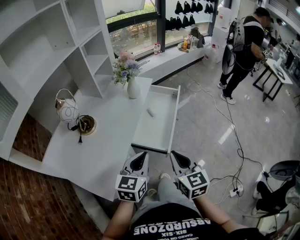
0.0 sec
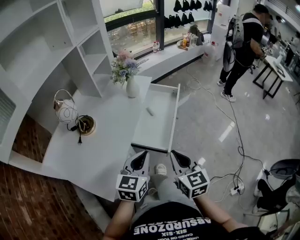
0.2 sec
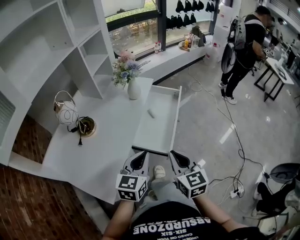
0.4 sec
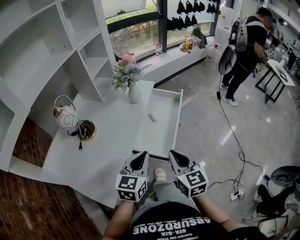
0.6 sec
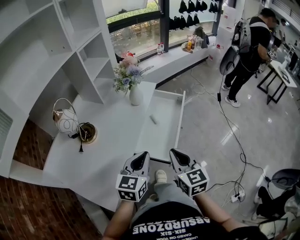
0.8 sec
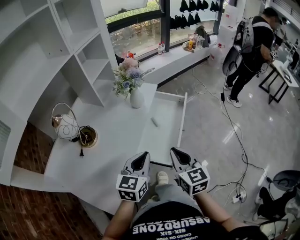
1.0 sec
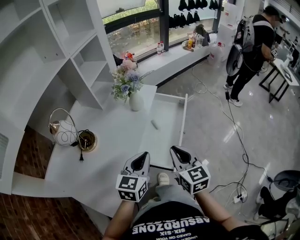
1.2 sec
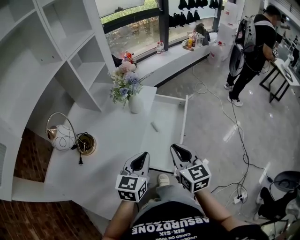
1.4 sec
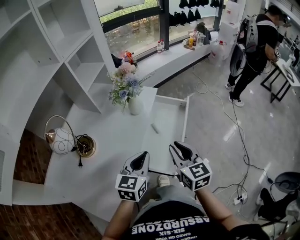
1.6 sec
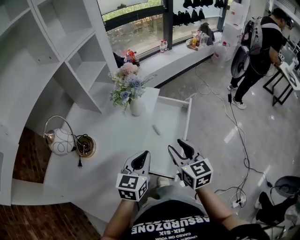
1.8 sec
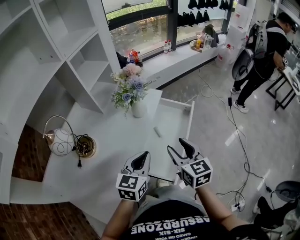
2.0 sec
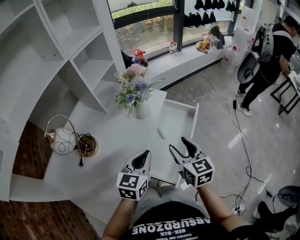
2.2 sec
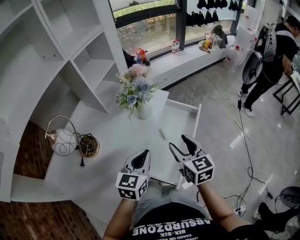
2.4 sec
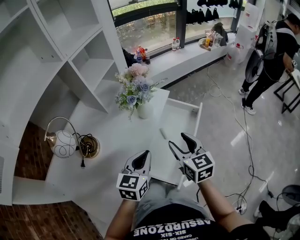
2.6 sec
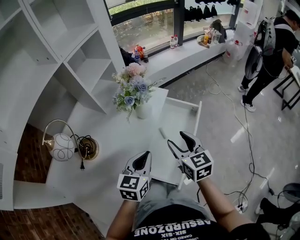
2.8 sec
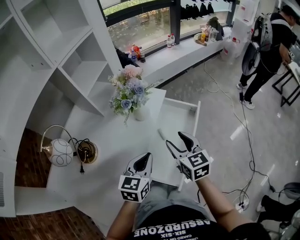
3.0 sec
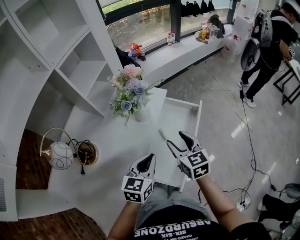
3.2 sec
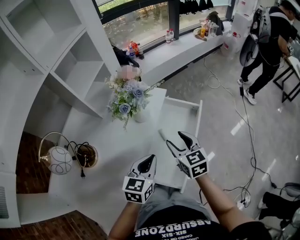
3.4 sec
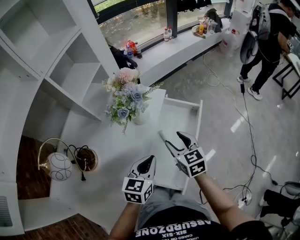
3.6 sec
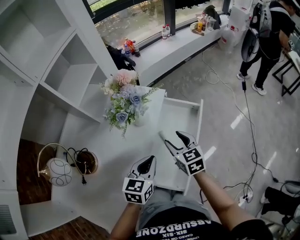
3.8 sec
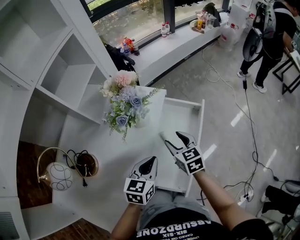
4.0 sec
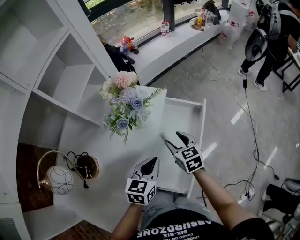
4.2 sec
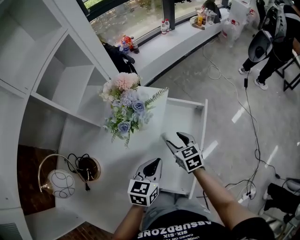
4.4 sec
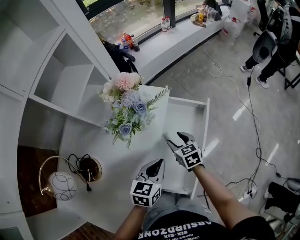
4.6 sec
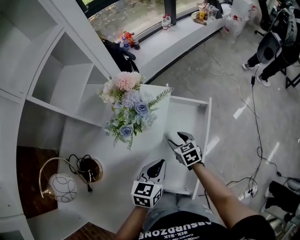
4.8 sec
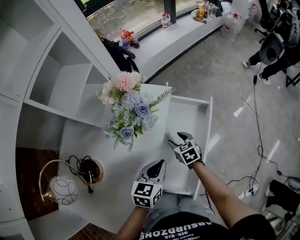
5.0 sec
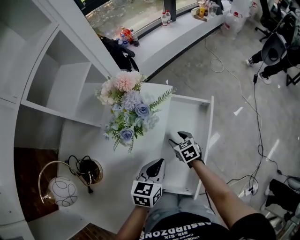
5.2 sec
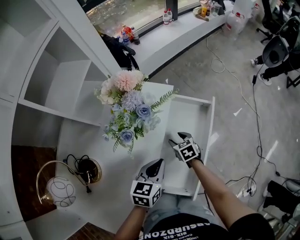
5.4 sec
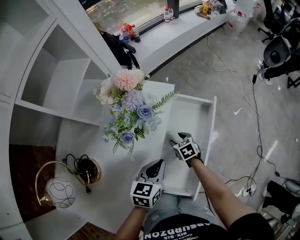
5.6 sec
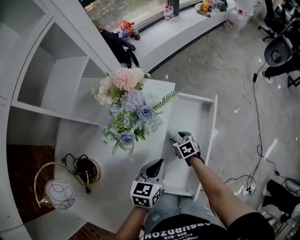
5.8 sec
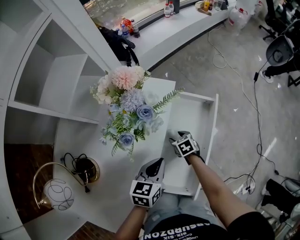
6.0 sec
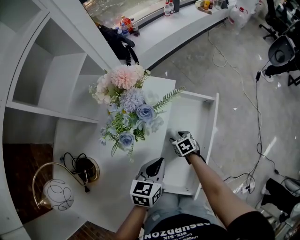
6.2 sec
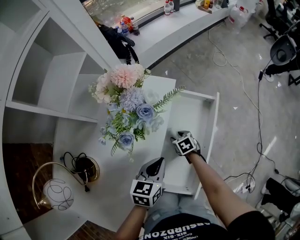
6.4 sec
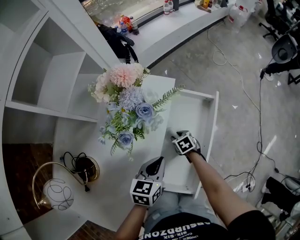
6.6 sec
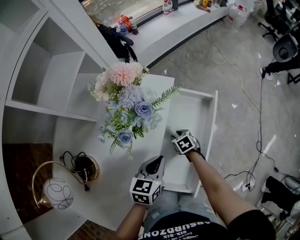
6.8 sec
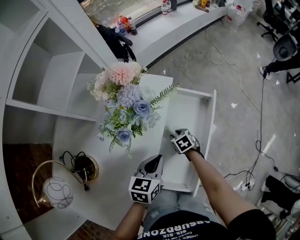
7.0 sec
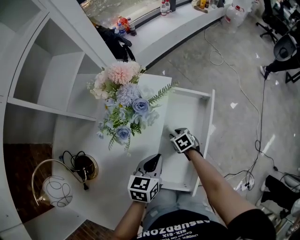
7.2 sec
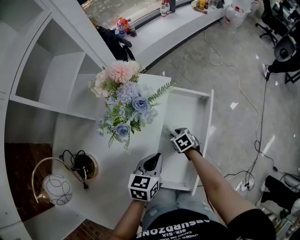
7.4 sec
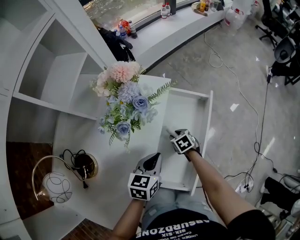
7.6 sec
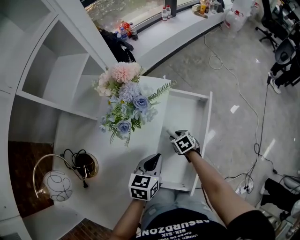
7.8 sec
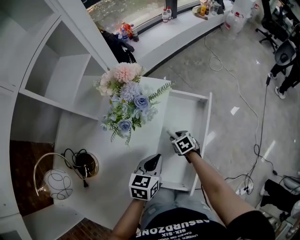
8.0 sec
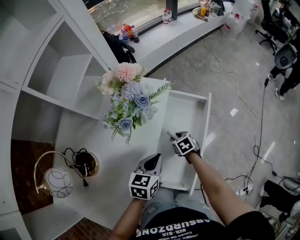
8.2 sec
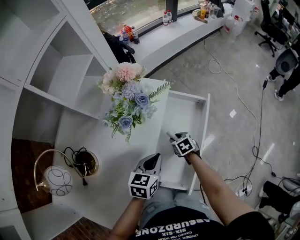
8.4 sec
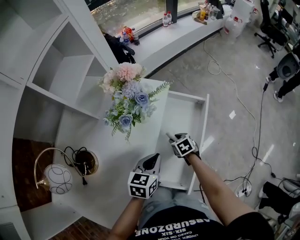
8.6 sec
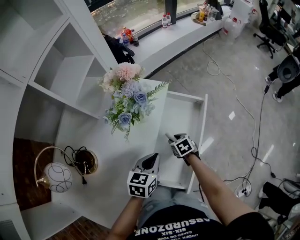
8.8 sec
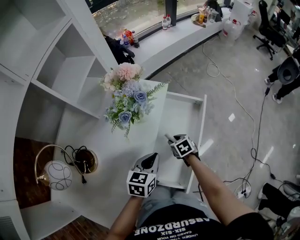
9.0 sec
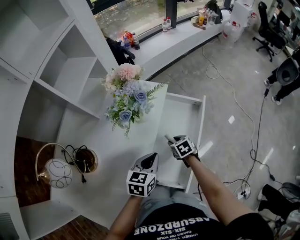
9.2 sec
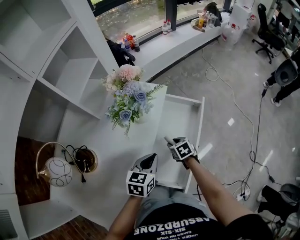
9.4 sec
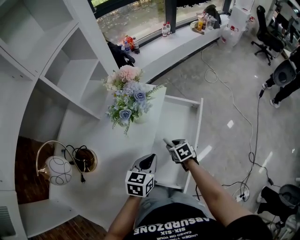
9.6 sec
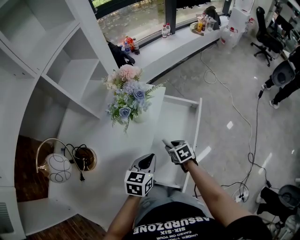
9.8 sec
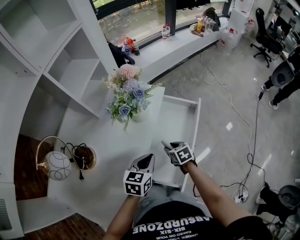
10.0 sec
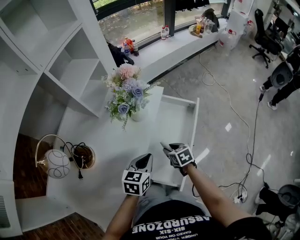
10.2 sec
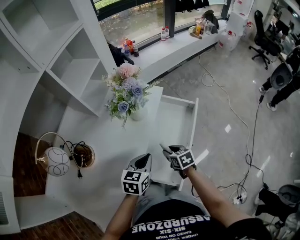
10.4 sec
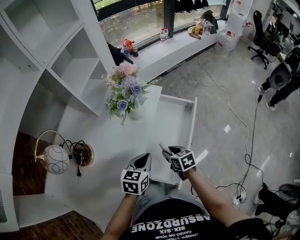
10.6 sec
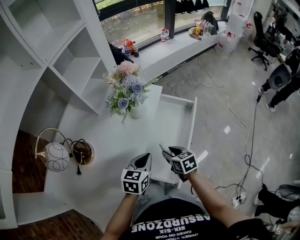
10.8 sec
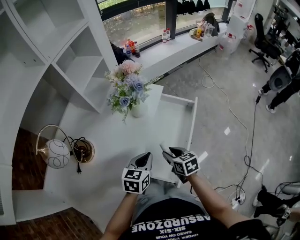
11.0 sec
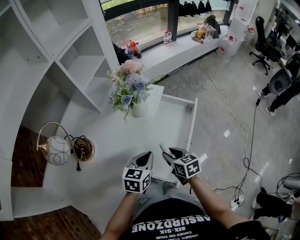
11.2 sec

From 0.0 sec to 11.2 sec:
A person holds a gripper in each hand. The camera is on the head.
From 0.0 sec to 1.6 sec: Both grippers travel together forward, some 20 cm.
From 1.6 sec to 3.2 sec: The right gripper heads forward and downward, covering approximately 15 cm, and opens, while the left gripper travels forward by about 10 cm.
From 3.2 sec to 4.8 sec: The right gripper moves downward and forward, some 25 cm, and changes its angle by about 20 degrees. The left gripper moves downward and forward, some 10 cm.
From 4.8 sec to 6.4 sec: The left gripper changes place by some 5 cm. The right gripper is displaced downward by roughly 15 cm, and changes its angle by about 20 degrees.
From 6.4 sec to 8.0 sec: The right gripper ends up some 5 cm from where it was.
From 8.0 sec to 9.6 sec: The right gripper heads upward and backward, covering some 10 cm.
From 9.6 sec to 11.2 sec: The left gripper goes about 5 cm backward. The right gripper moves upward and backward, about 15 cm.

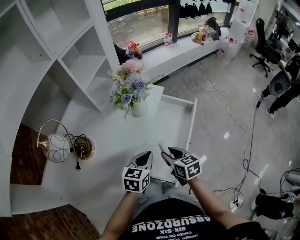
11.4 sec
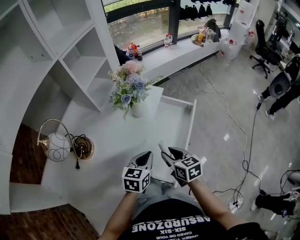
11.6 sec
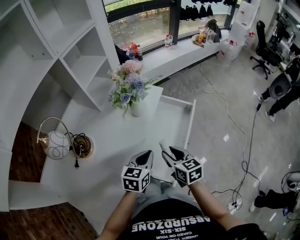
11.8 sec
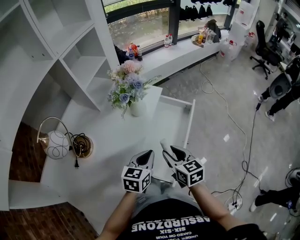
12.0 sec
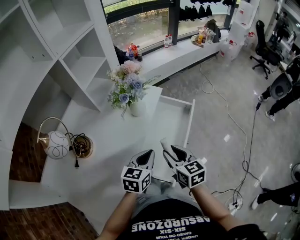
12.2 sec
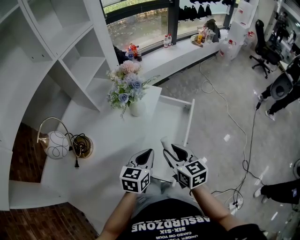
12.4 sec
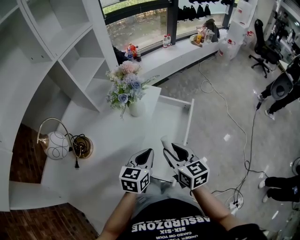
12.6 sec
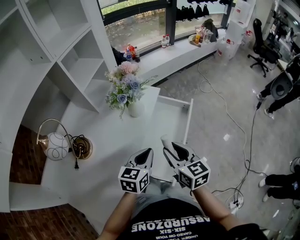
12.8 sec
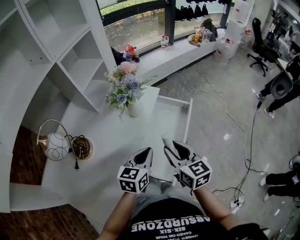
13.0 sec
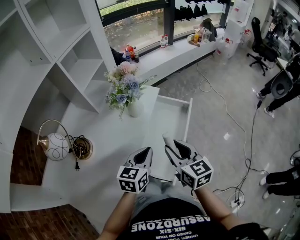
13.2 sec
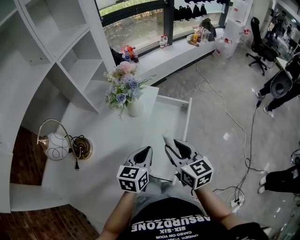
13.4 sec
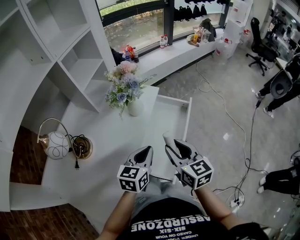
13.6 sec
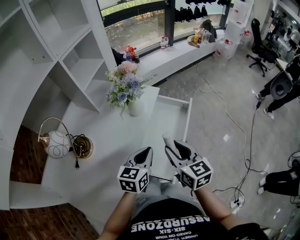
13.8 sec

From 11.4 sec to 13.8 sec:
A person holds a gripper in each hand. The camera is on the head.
From 11.4 sec to 12.6 sec: The right gripper shifts about 10 cm upward.
From 12.6 sec to 13.8 sec: The grippers stay close to where they were, moving slightly.

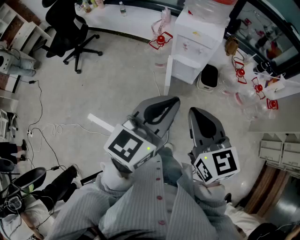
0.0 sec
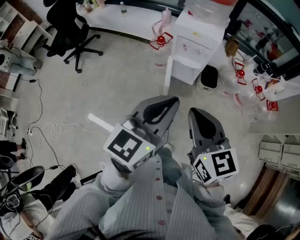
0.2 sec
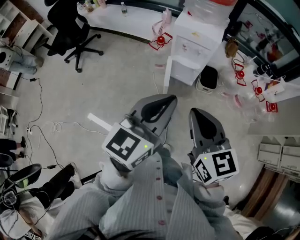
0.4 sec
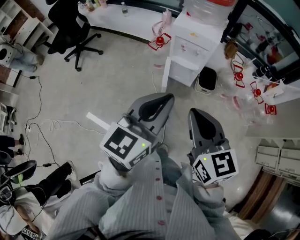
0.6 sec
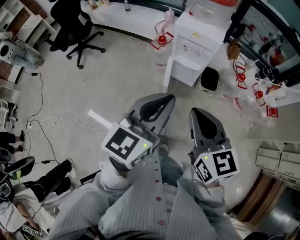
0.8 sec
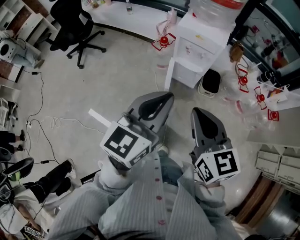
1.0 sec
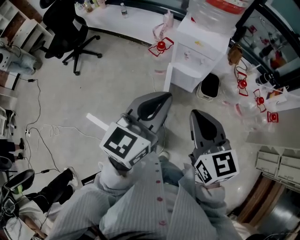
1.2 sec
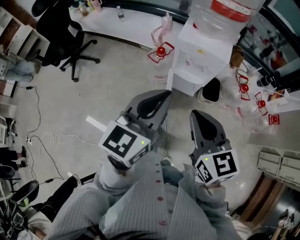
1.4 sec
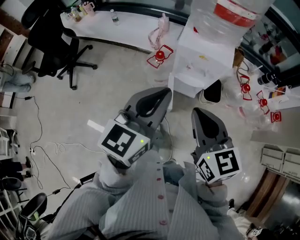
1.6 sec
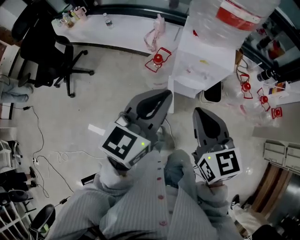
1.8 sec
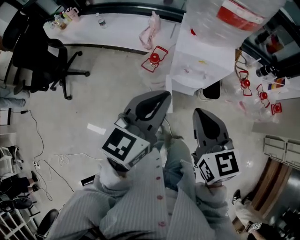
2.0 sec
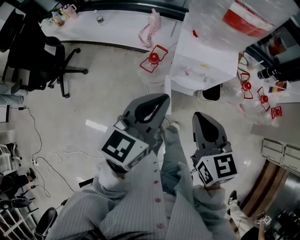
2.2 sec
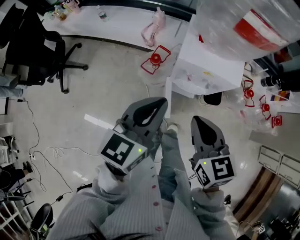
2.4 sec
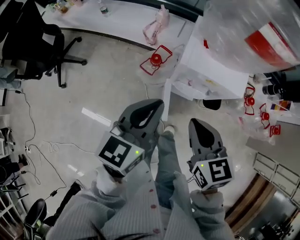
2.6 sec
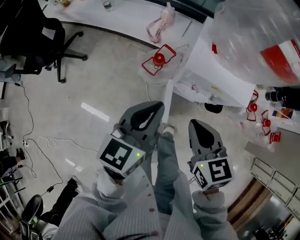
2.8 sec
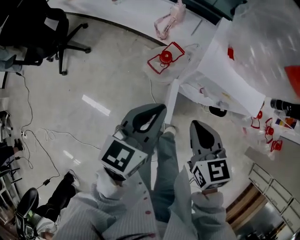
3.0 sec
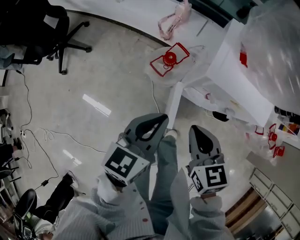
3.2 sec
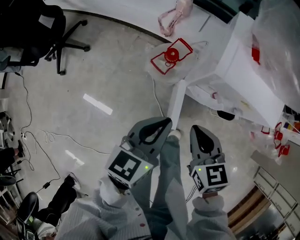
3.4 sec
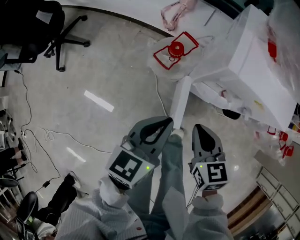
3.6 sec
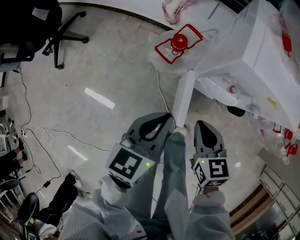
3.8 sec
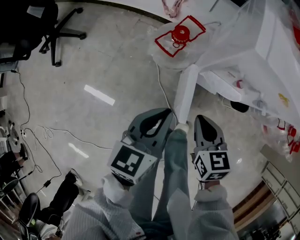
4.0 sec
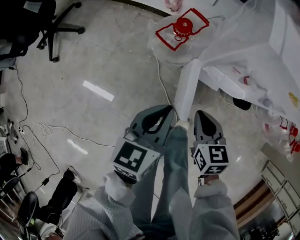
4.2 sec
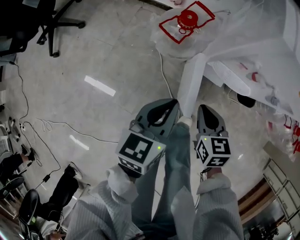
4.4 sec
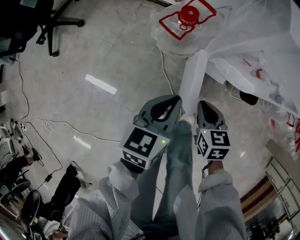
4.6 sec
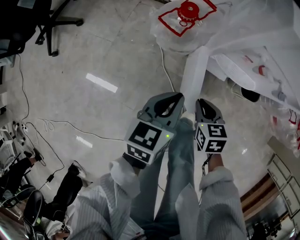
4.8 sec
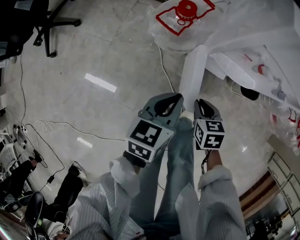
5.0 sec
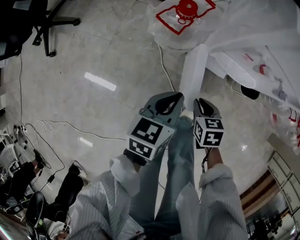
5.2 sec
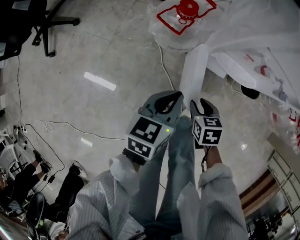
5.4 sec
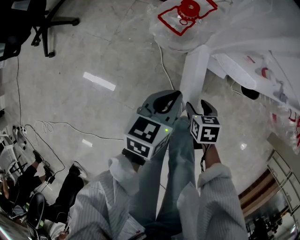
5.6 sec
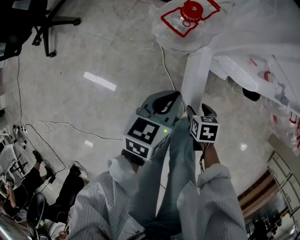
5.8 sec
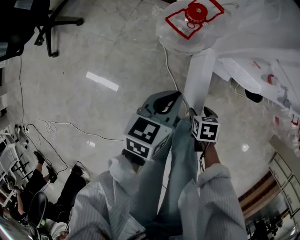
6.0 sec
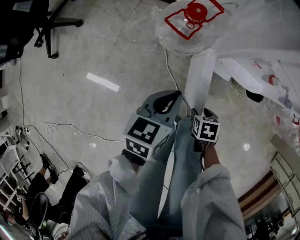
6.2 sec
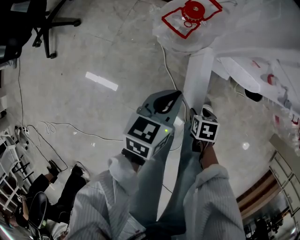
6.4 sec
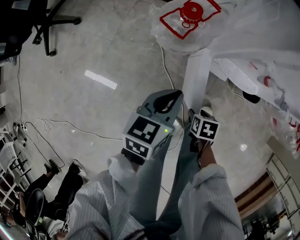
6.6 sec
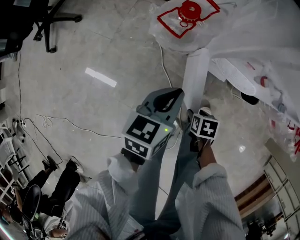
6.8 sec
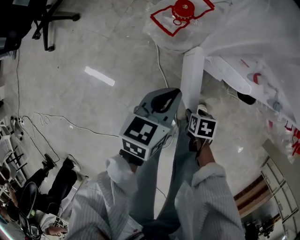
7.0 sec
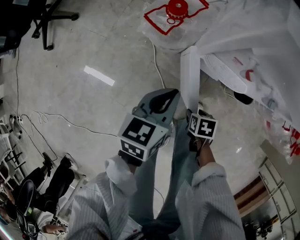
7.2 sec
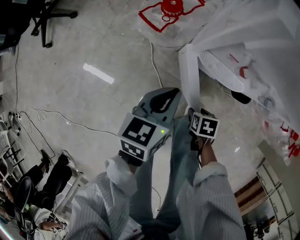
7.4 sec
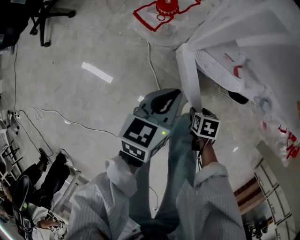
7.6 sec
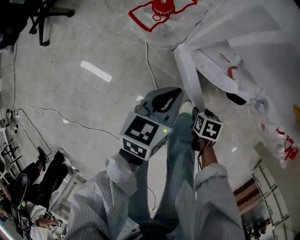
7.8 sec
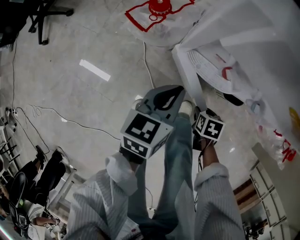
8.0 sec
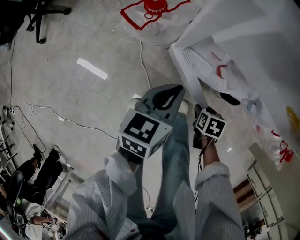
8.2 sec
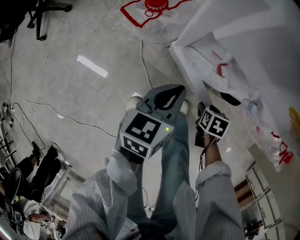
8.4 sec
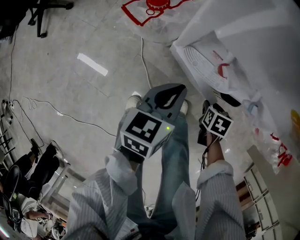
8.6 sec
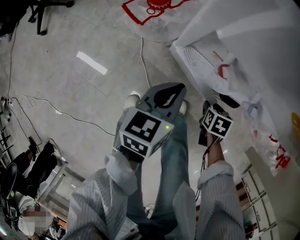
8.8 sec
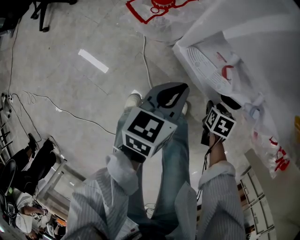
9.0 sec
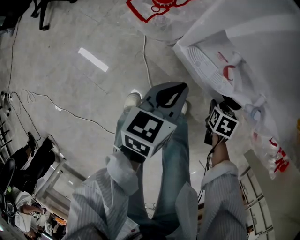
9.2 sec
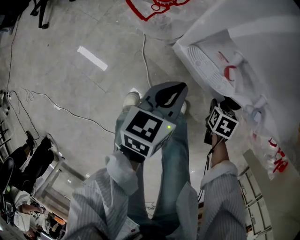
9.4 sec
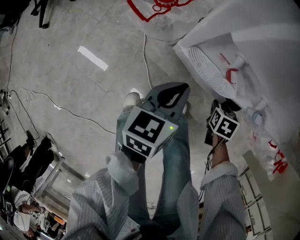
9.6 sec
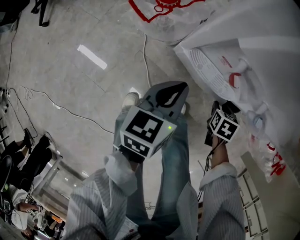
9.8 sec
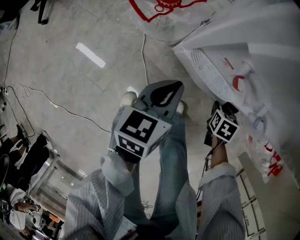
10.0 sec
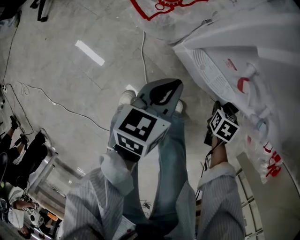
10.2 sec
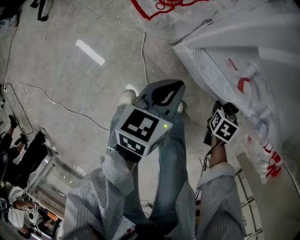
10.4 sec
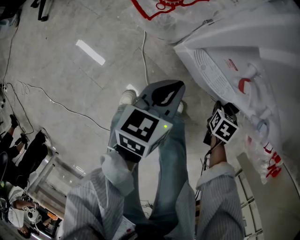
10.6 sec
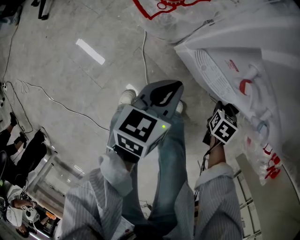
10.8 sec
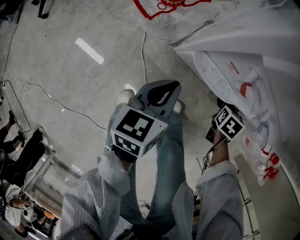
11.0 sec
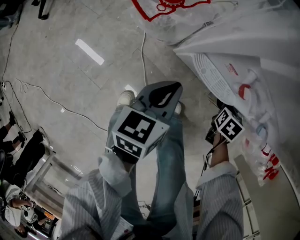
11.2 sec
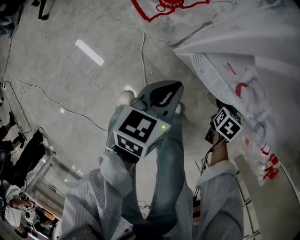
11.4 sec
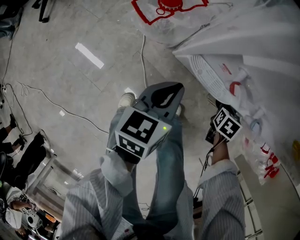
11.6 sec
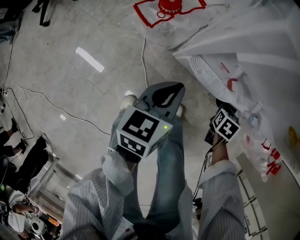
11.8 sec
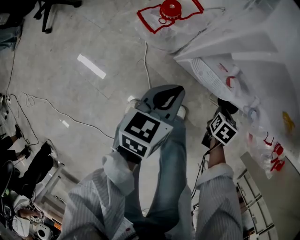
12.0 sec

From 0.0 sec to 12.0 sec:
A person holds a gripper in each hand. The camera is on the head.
From 0.0 sec to 1.6 sec: The grippers both shift forward by some 20 cm.
From 1.6 sec to 3.0 sec: Both grippers travel together forward and downward, about 25 cm.
From 3.0 sec to 4.4 sec: Both grippers travel together downward, roughly 30 cm.
From 4.4 sec to 6.0 sec: The right gripper is displaced downward by some 15 cm, turns by some 30 degrees, and opens its fingers; the left gripper is displaced downward by some 5 cm.
From 6.0 sec to 7.6 sec: The right gripper ends up roughly 15 cm from where it was. The left gripper ends up about 10 cm from where it was.
From 7.6 sec to 9.0 sec: The right gripper shifts by about 15 cm. The left gripper changes place by about 5 cm.
From 9.0 sec to 10.4 sec: The grippers make only small movements.
From 10.4 sec to 12.0 sec: The left gripper moves some 5 cm. Meanwhile the right gripper ends up about 5 cm from where it was, and closes.
